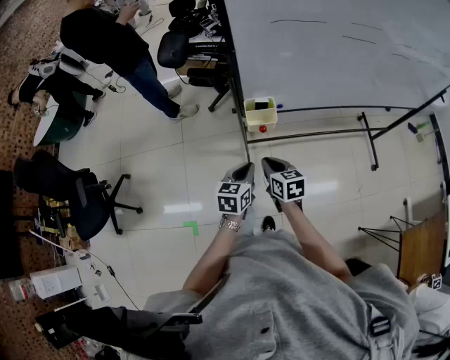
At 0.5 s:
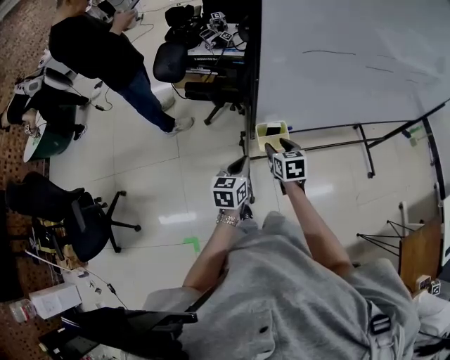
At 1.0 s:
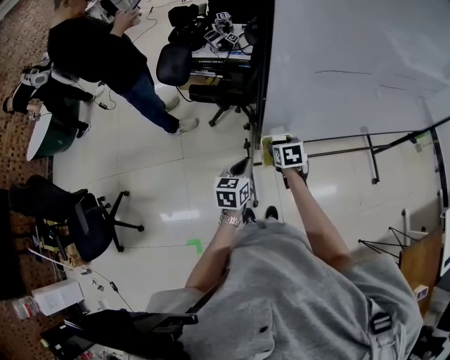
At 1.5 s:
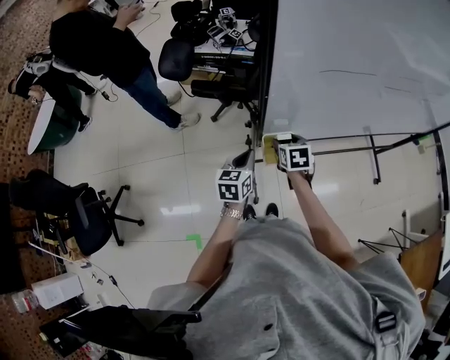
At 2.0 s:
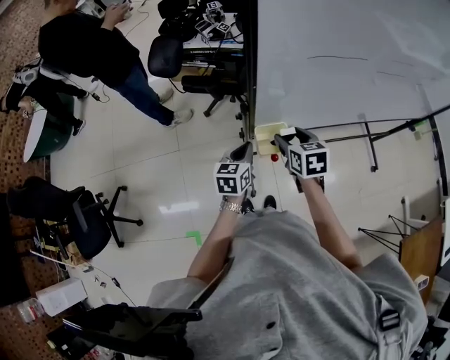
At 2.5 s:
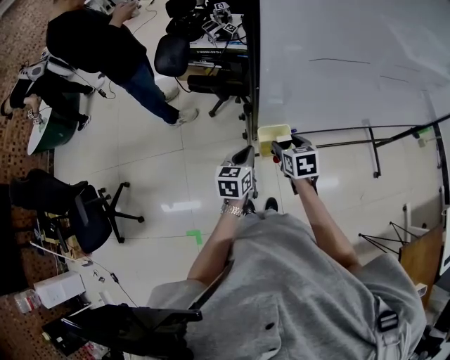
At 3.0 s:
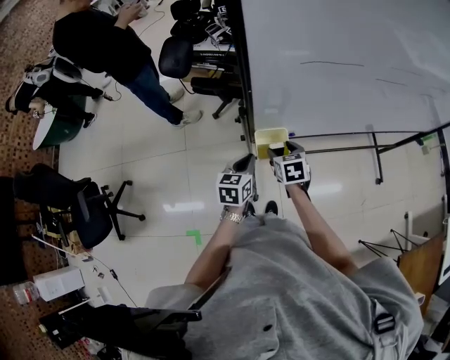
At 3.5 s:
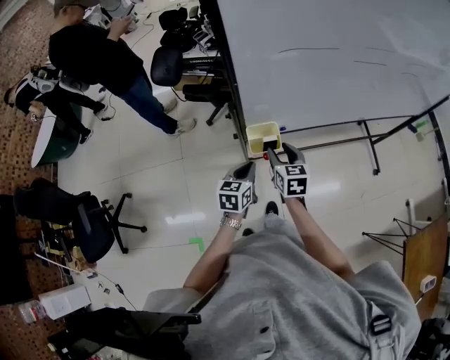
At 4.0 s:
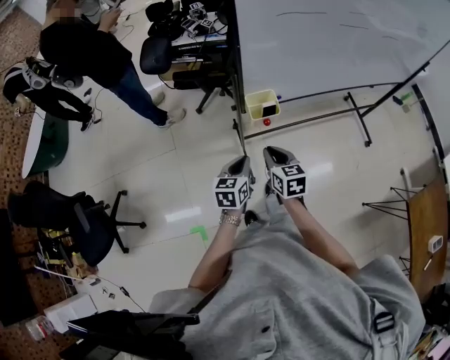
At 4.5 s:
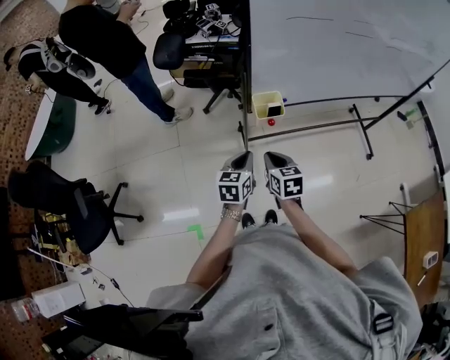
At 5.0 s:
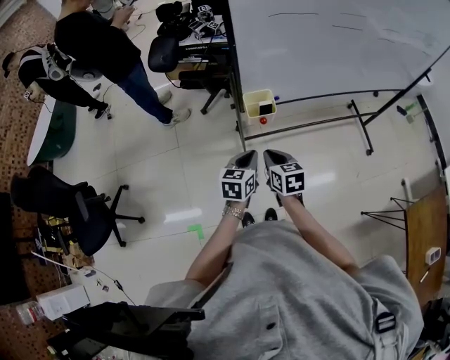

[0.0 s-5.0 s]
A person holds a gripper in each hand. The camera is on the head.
0.0 to 2.5 s: Both grippers move forward, roughly 20 cm. The right gripper opens.
2.5 to 5.0 s: The two grippers go some 20 cm backward. The right gripper closes up.

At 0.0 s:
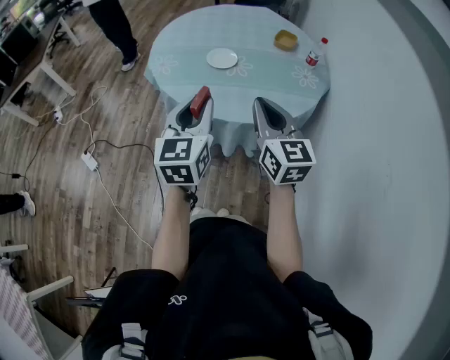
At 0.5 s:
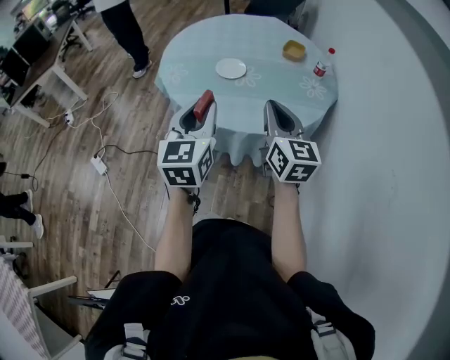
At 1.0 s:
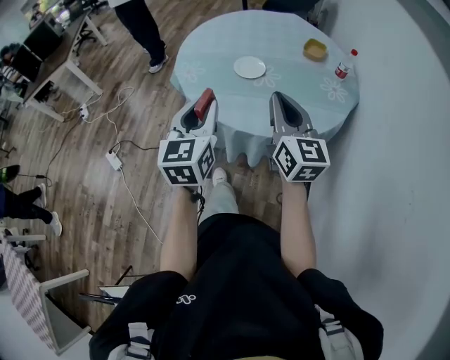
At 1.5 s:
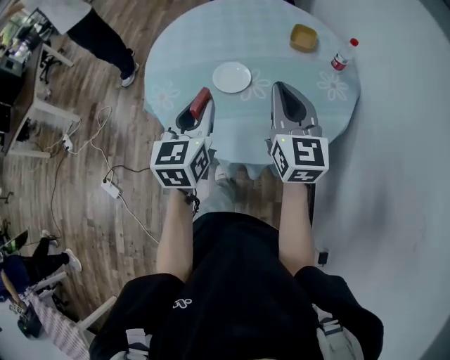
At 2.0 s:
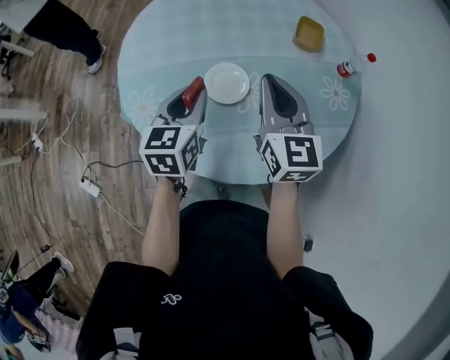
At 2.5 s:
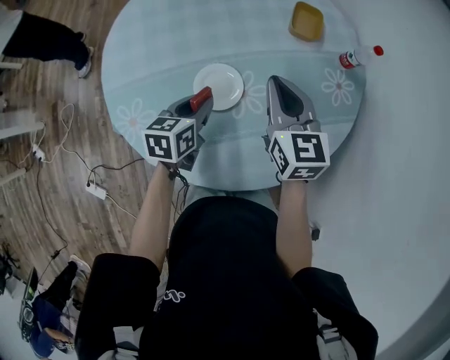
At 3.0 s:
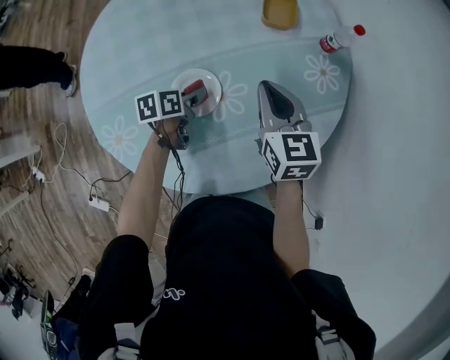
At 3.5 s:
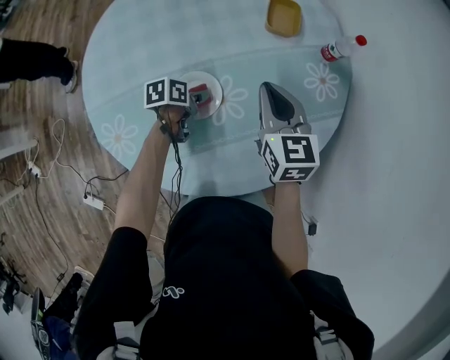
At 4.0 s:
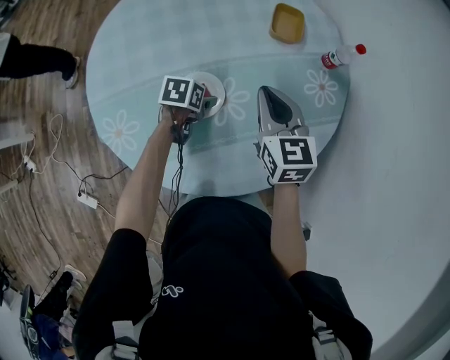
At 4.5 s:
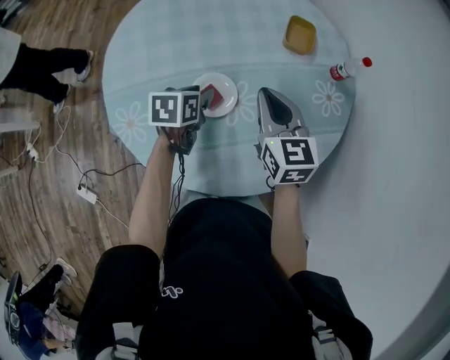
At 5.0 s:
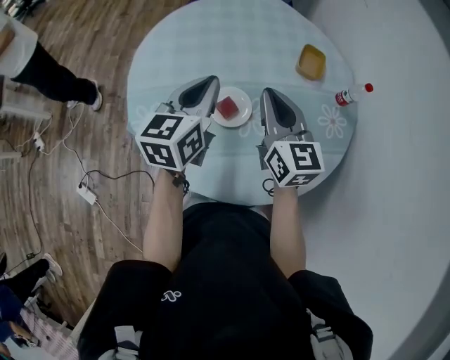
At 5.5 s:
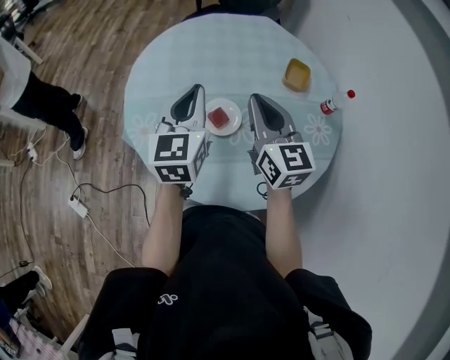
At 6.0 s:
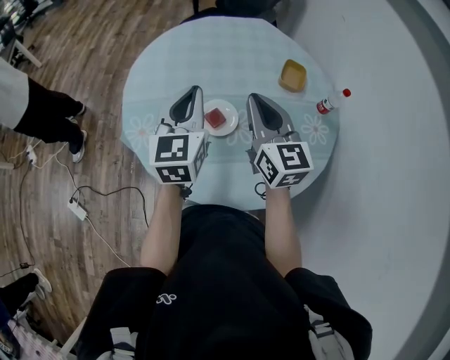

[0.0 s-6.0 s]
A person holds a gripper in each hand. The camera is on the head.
0.0 to 2.0 s: The two grippers travel together, forward, about 40 cm. The left gripper turns by about 20 degrees.
2.0 to 4.0 s: The left gripper is displaced downward by some 20 cm, tips its fingers downward by some 30 degrees, and opens up, while the right gripper changes place by roughly 15 cm.
4.0 to 6.0 s: The right gripper is displaced upward by roughly 15 cm, and turns by roughly 20 degrees. The left gripper heads upward, covering roughly 35 cm, points its fingers some 50 degrees further upward, and closes.

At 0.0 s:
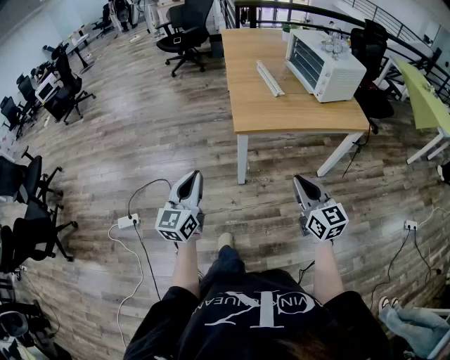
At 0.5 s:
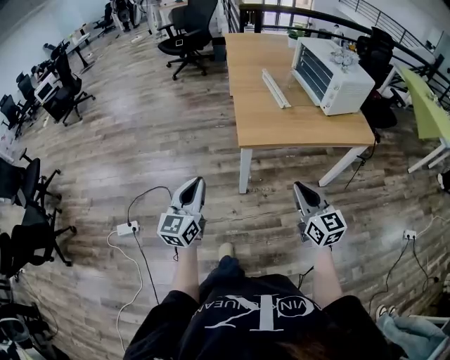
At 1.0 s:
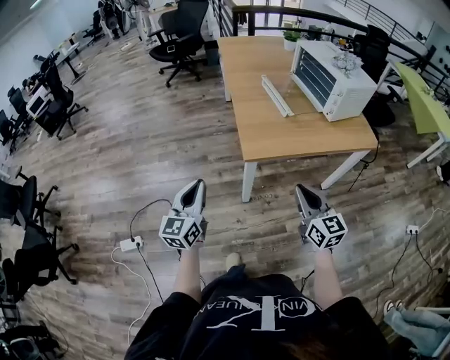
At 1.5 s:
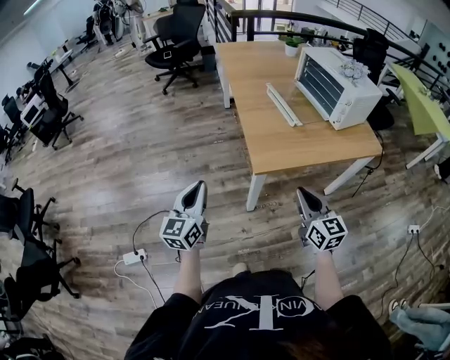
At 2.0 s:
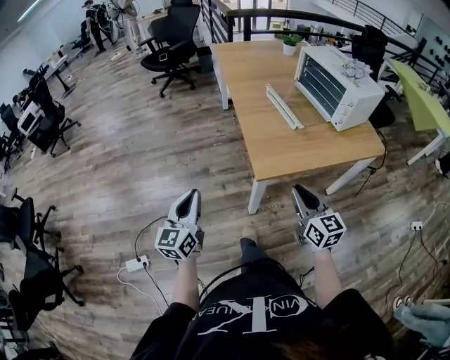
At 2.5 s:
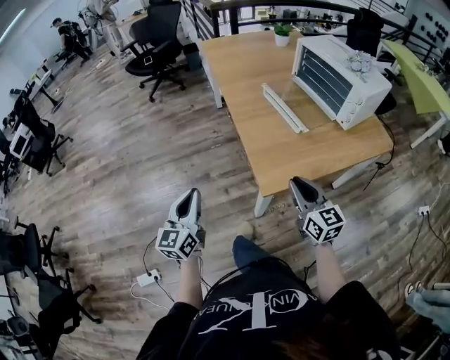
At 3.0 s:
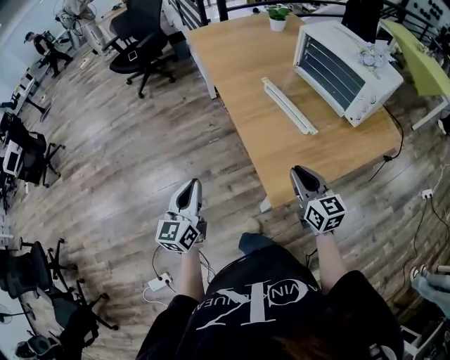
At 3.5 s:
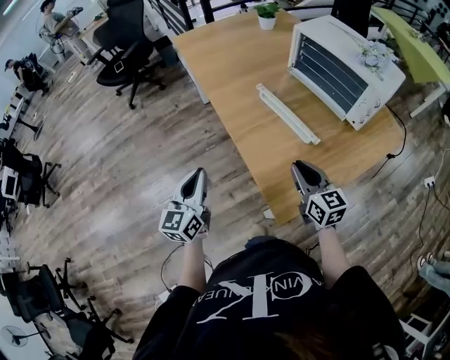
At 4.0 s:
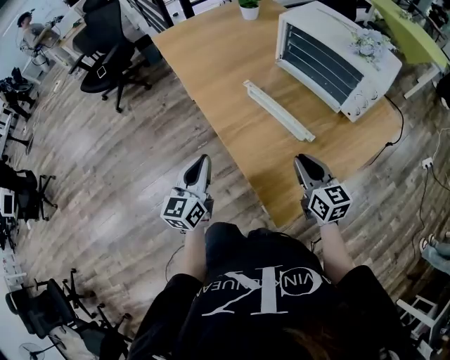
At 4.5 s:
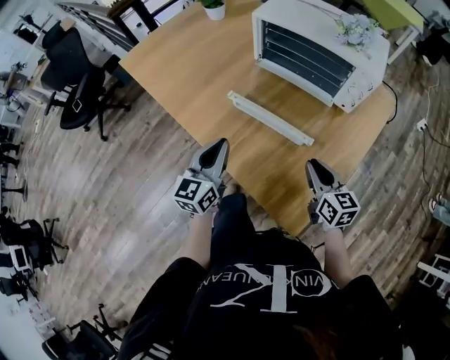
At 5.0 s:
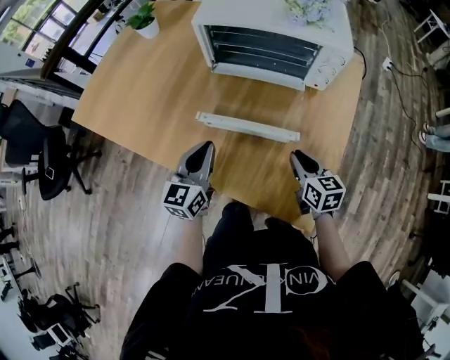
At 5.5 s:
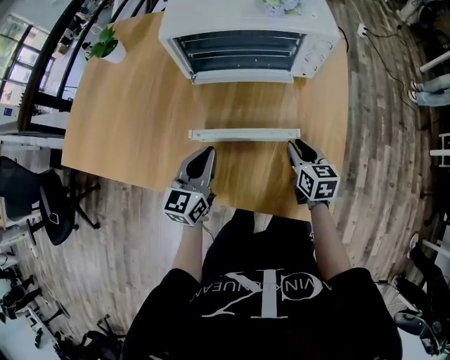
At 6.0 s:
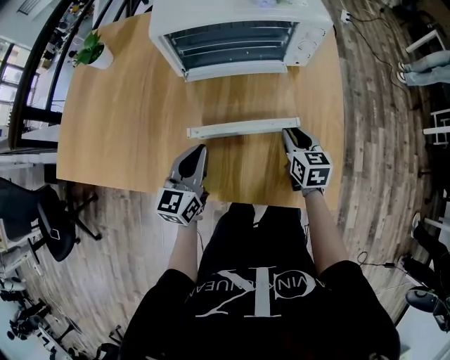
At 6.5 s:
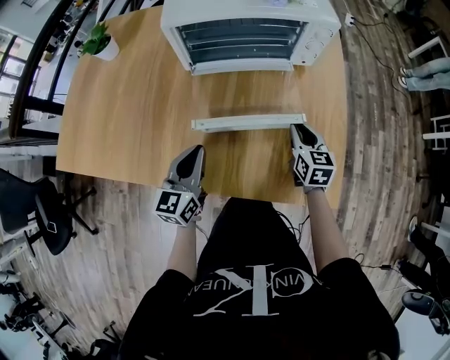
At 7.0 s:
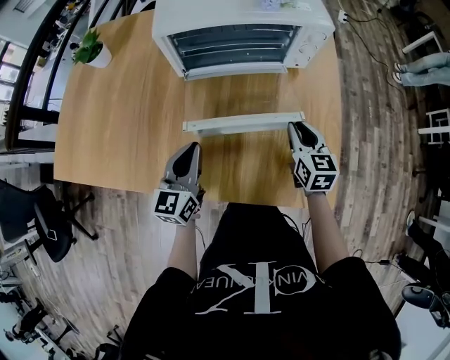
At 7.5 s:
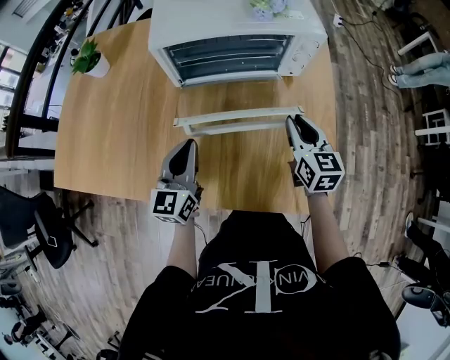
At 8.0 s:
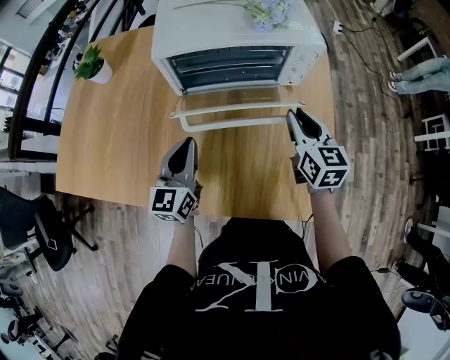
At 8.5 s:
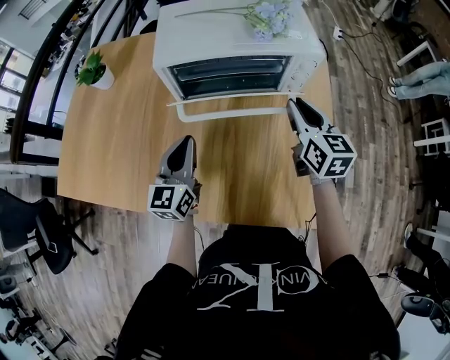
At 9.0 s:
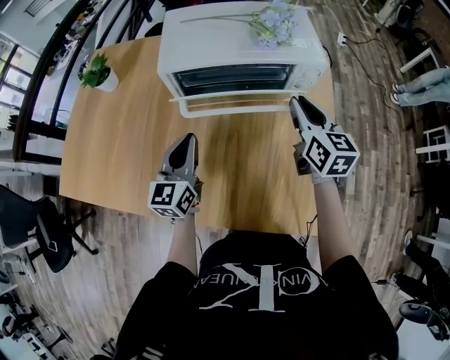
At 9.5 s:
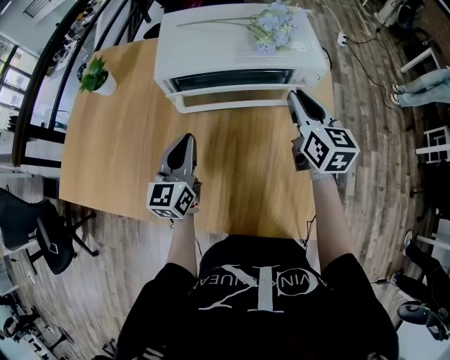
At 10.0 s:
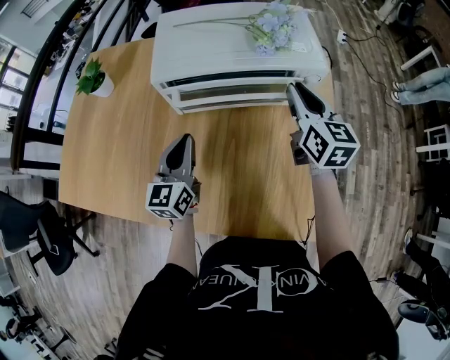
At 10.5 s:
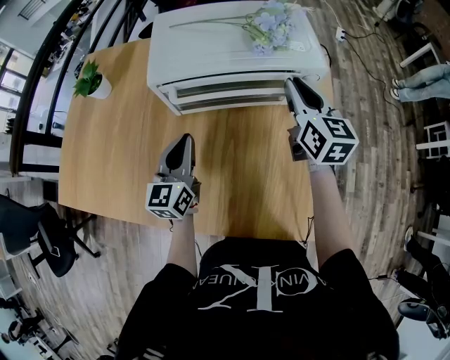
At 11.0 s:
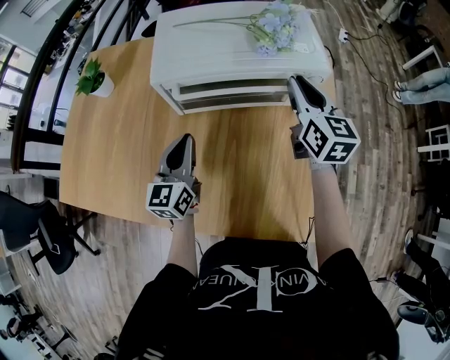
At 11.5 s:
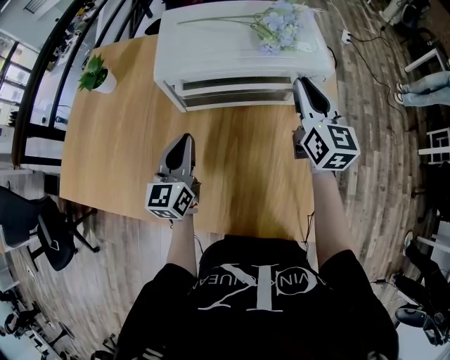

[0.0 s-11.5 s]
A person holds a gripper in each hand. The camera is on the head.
0.0 to 2.0 s: Both grippers move forward and to the left, approximately 20 cm.
2.0 to 4.0 s: The grippers both shift forward by about 35 cm. The left gripper swivels roughly 20 degrees, while the right gripper changes its angle by some 20 degrees.
4.0 to 6.0 s: The right gripper shifts by some 15 cm, and turns by about 60 degrees. The left gripper moves roughly 25 cm, and turns by approximately 60 degrees.
6.0 to 7.5 s: The left gripper changes place by about 5 cm; the right gripper goes about 10 cm upward.
7.5 to 9.5 s: The left gripper moves forward, roughly 10 cm, while the right gripper shifts roughly 15 cm forward and upward.
9.5 to 11.5 s: The grippers stay close to where they were, moving slightly.

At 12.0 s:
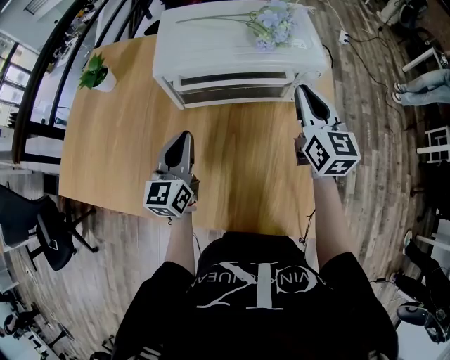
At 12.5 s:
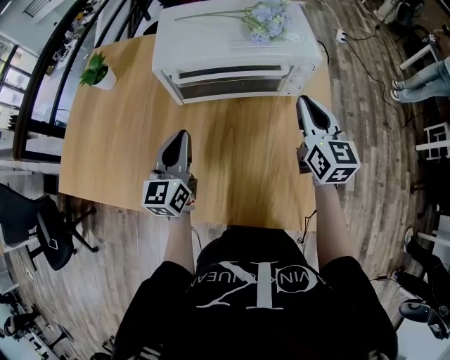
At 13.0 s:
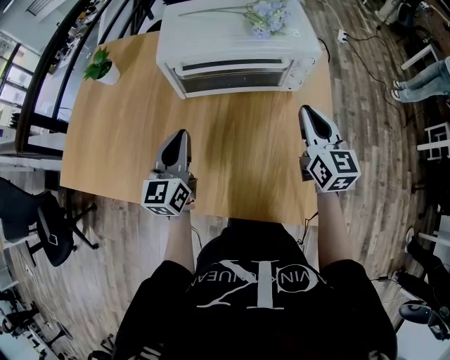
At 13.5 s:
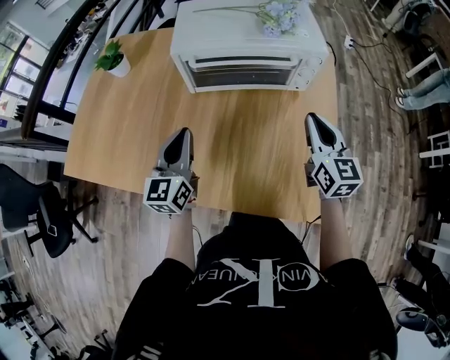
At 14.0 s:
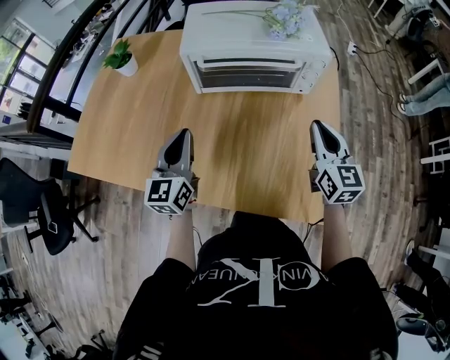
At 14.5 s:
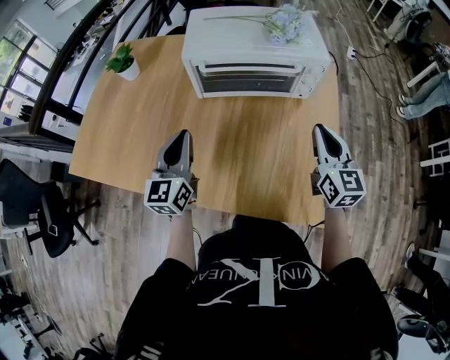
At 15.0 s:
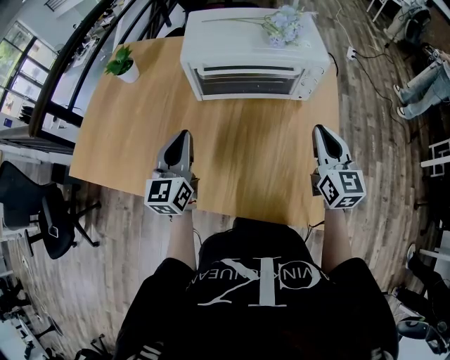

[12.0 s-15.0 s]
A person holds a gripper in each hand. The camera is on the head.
12.0 to 13.5 s: The left gripper travels backward by approximately 5 cm; the right gripper is displaced backward by some 10 cm.
13.5 to 15.0 s: There are only small adjustments of the grippers.

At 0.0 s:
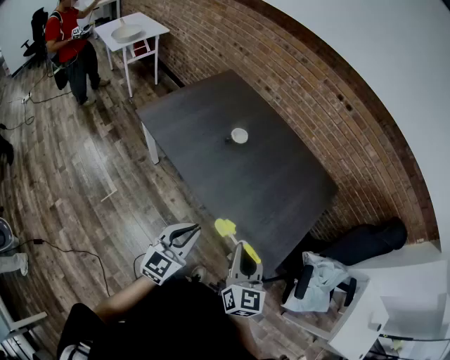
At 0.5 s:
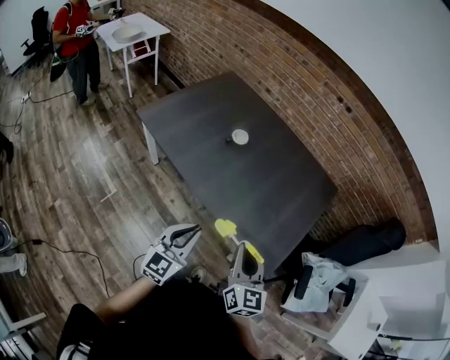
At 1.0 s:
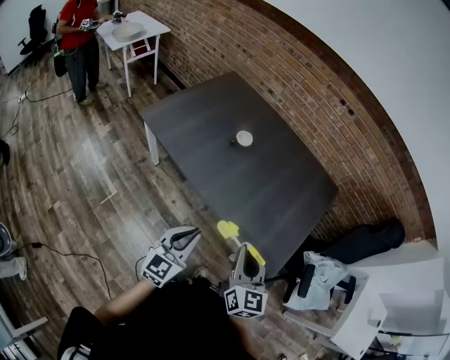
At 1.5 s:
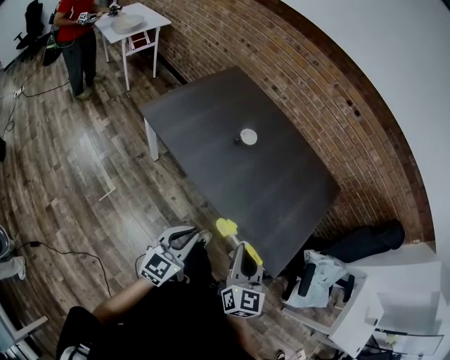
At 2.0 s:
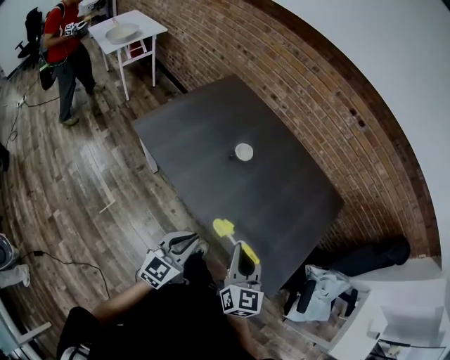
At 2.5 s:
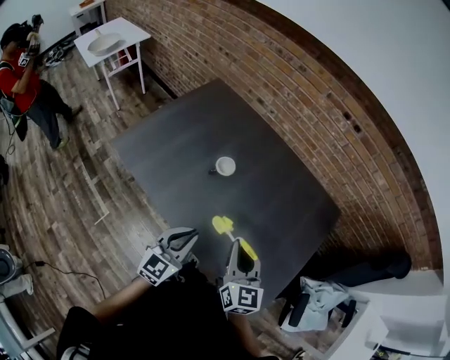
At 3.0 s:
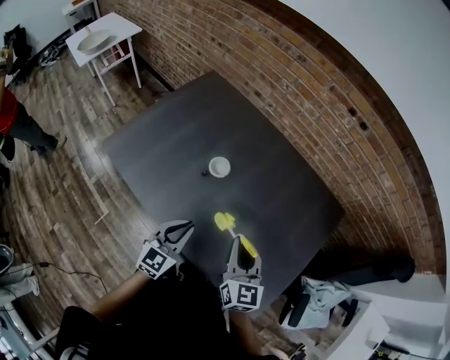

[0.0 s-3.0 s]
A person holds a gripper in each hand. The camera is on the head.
0.0 to 1.5 s: Both grippers move to the left, some 5 cm.
1.5 to 3.0 s: The two grippers go some 30 cm forward.
